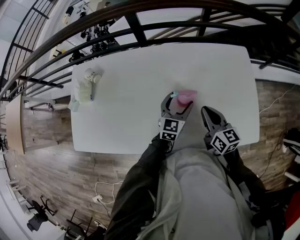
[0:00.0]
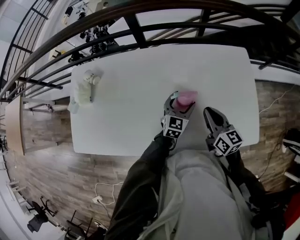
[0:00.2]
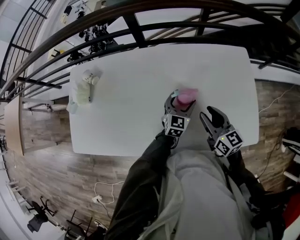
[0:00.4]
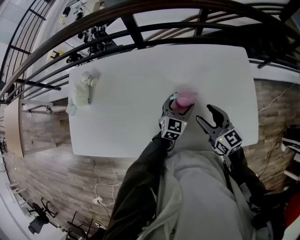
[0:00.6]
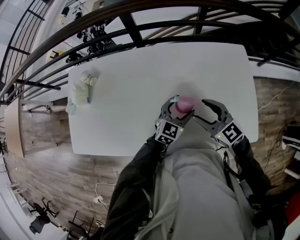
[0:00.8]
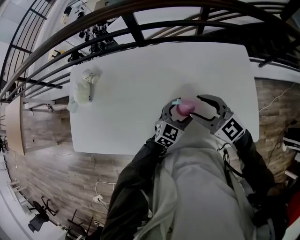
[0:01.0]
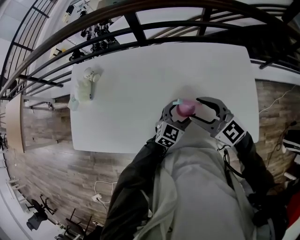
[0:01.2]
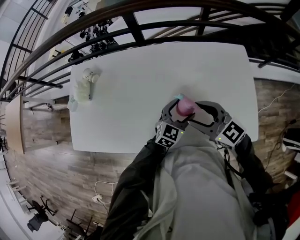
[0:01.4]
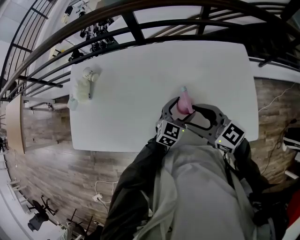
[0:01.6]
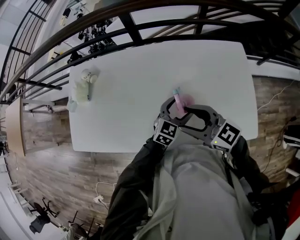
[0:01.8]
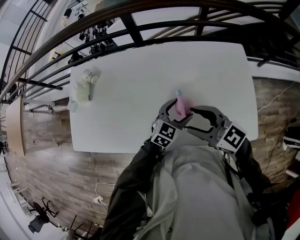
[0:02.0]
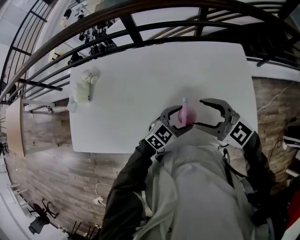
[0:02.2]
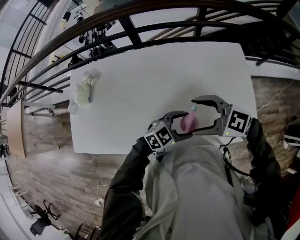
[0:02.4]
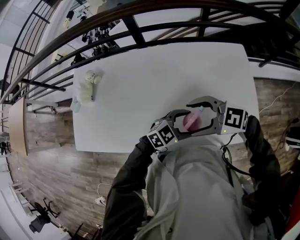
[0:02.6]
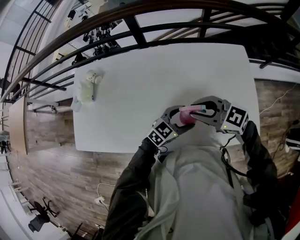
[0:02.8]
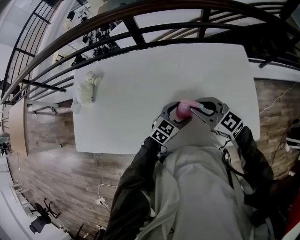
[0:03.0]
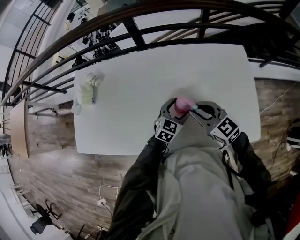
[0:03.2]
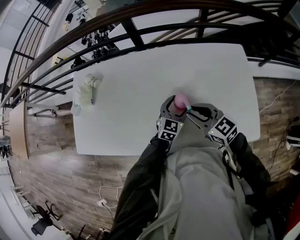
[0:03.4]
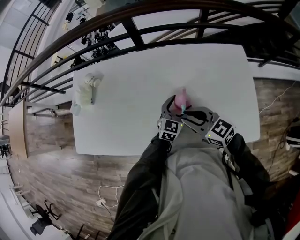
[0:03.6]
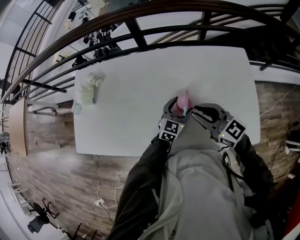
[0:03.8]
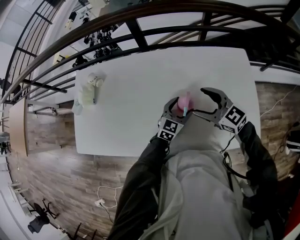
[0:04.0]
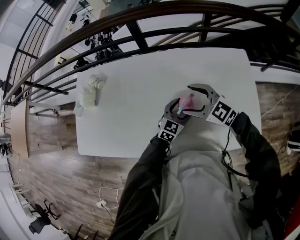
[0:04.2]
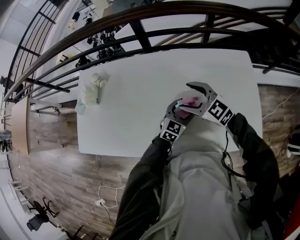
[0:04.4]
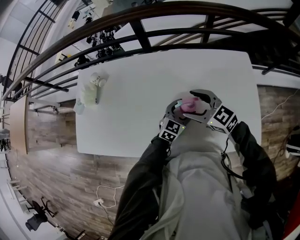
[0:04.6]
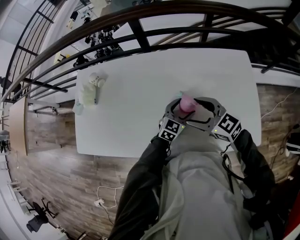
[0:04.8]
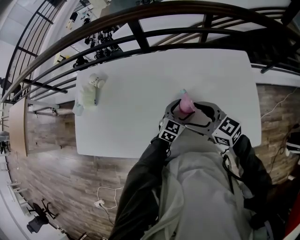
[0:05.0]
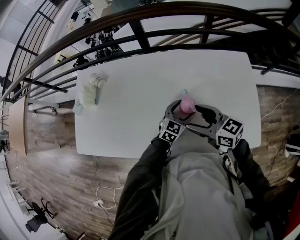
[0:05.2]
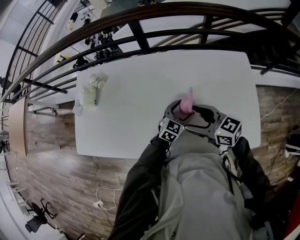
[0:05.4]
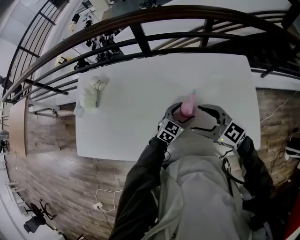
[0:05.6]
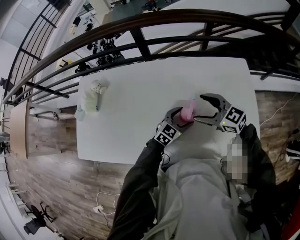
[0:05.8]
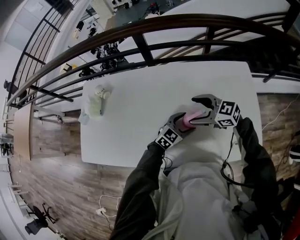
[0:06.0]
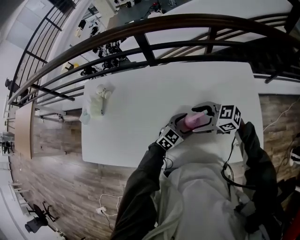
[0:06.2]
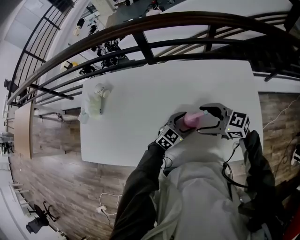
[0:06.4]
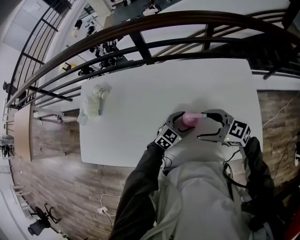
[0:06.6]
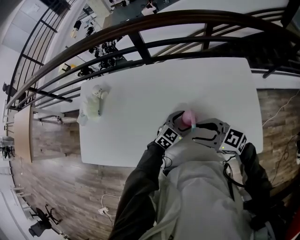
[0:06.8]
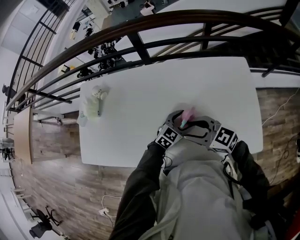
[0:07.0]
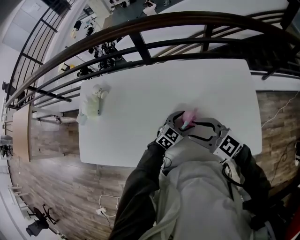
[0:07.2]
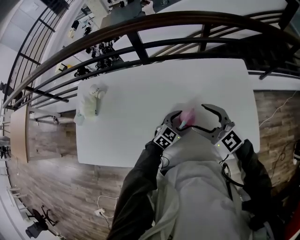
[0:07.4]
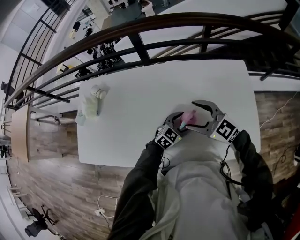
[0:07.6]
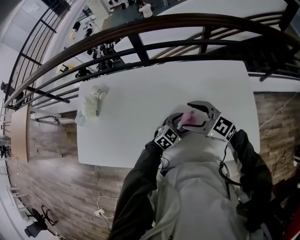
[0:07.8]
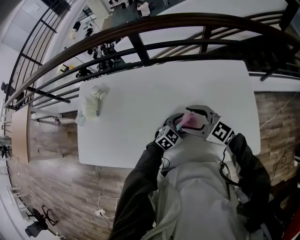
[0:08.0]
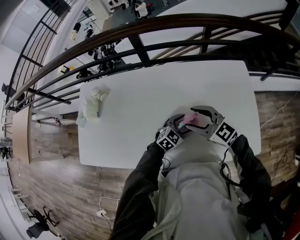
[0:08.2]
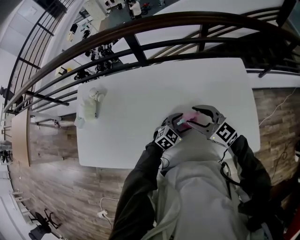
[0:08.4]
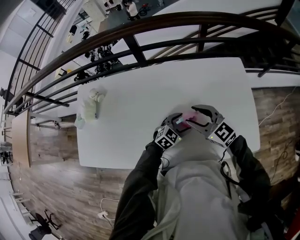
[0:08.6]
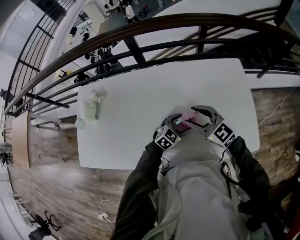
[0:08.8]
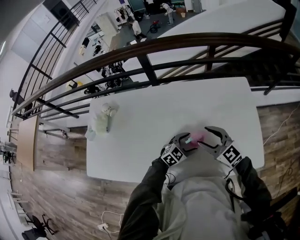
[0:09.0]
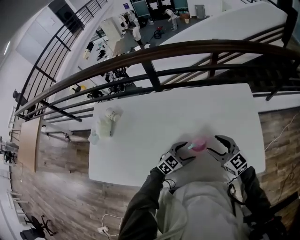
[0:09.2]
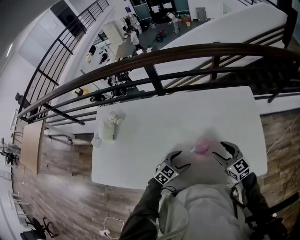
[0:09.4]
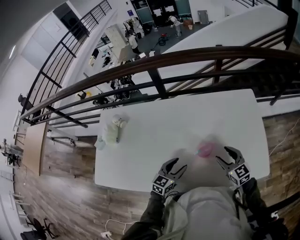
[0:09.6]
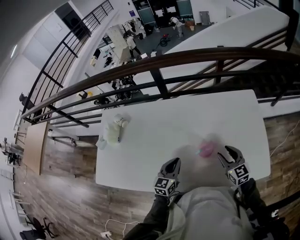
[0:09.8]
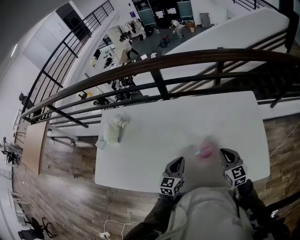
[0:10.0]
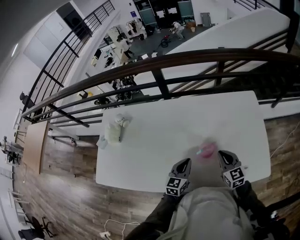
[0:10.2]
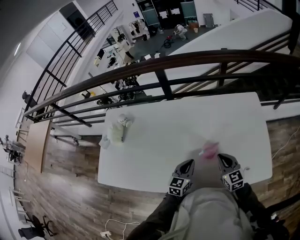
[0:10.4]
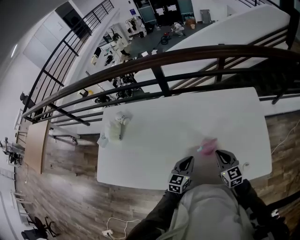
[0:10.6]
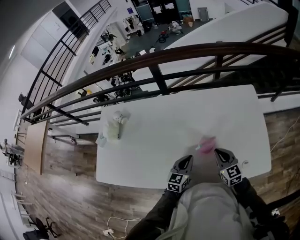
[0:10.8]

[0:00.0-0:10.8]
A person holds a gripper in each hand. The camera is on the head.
0:00.0 to 0:01.6: The left gripper changes place by approximately 5 cm; the right gripper is displaced to the left and upward by some 10 cm, changes its angle by about 40 degrees, and opens.
0:01.6 to 0:03.0: The right gripper shifts by about 5 cm, and closes its fingers.
0:03.0 to 0:04.6: The left gripper is displaced forward by about 5 cm, while the right gripper opens its fingers.
0:04.6 to 0:06.2: The right gripper rotates about 20 degrees.
0:06.2 to 0:07.8: The right gripper turns by about 20 degrees, and closes, then opens again.
0:07.8 to 0:09.2: The right gripper travels to the right by about 10 cm, and changes its angle by approximately 20 degrees.
0:09.2 to 0:10.8: The left gripper turns by some 40 degrees, and closes its fingers. The right gripper changes place by about 5 cm, and closes up.

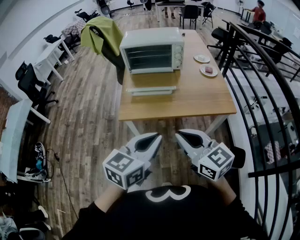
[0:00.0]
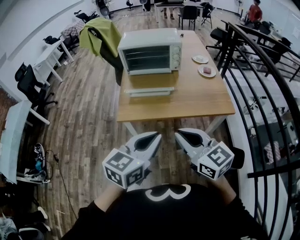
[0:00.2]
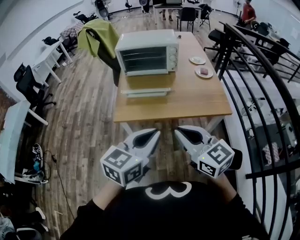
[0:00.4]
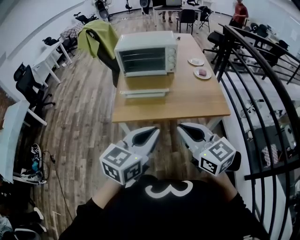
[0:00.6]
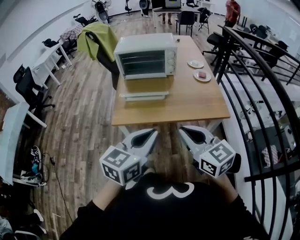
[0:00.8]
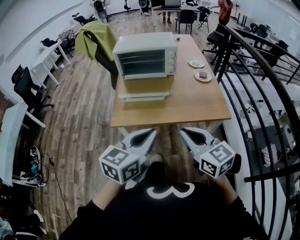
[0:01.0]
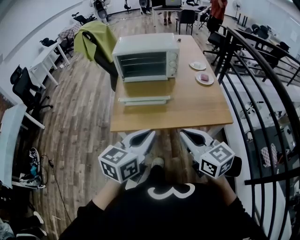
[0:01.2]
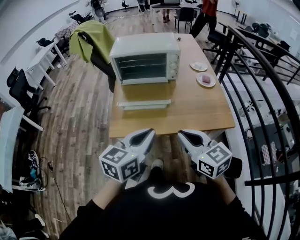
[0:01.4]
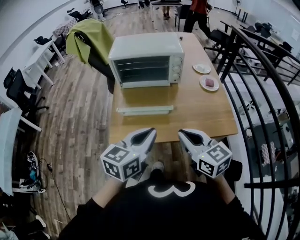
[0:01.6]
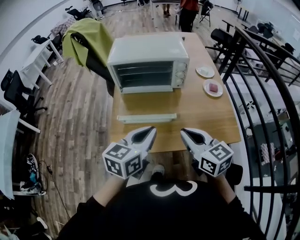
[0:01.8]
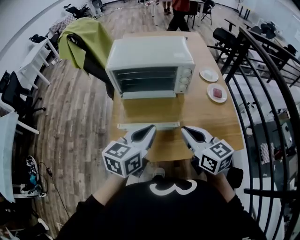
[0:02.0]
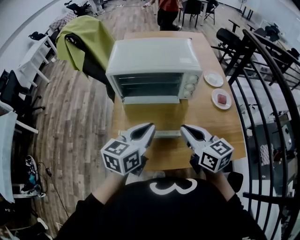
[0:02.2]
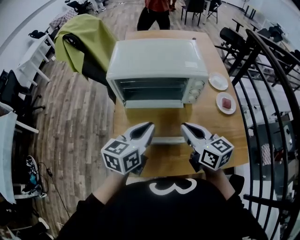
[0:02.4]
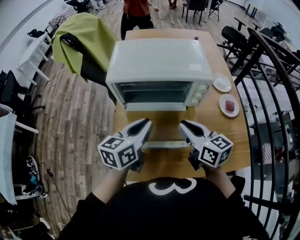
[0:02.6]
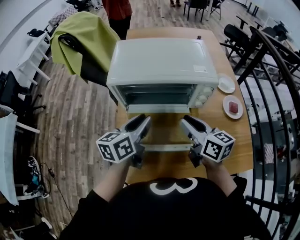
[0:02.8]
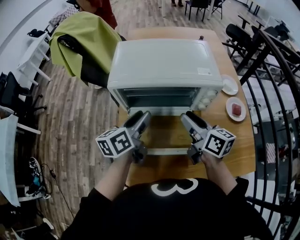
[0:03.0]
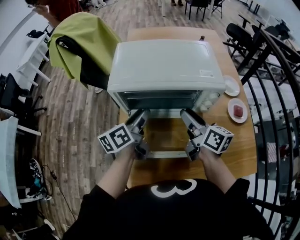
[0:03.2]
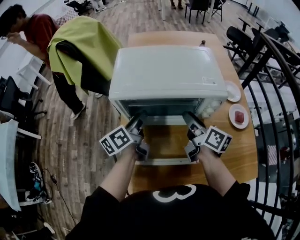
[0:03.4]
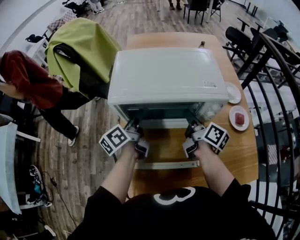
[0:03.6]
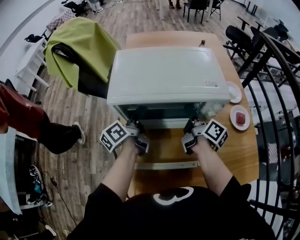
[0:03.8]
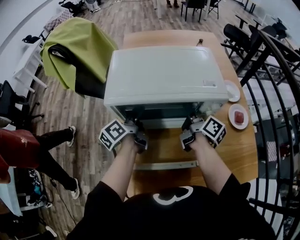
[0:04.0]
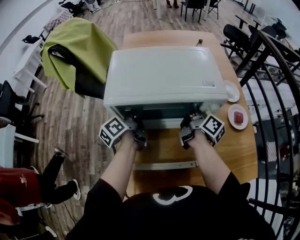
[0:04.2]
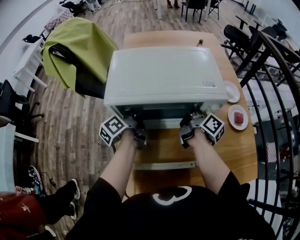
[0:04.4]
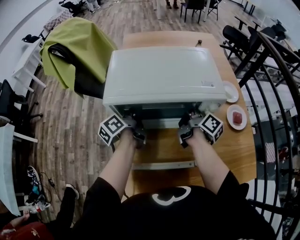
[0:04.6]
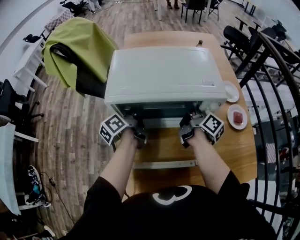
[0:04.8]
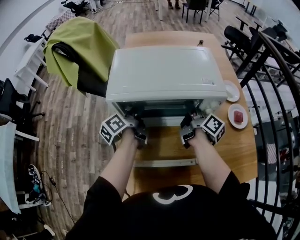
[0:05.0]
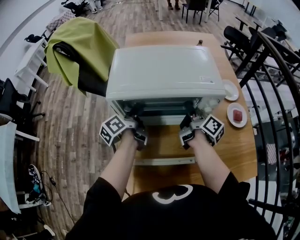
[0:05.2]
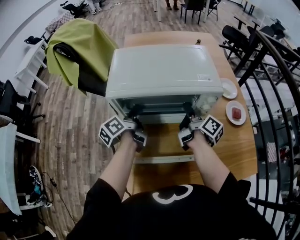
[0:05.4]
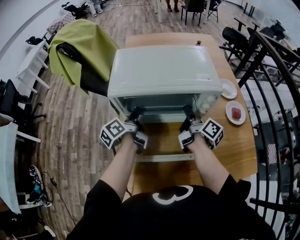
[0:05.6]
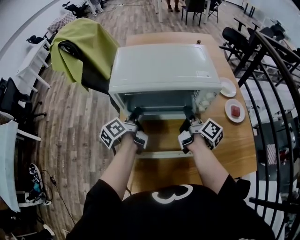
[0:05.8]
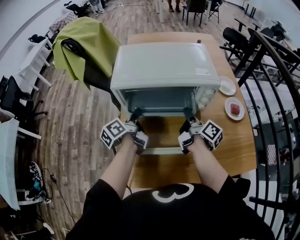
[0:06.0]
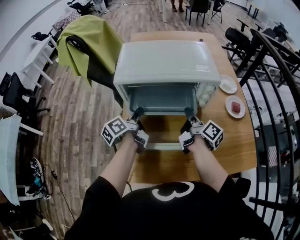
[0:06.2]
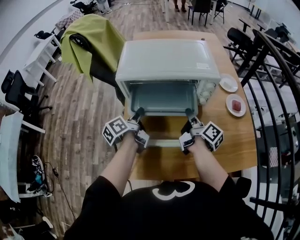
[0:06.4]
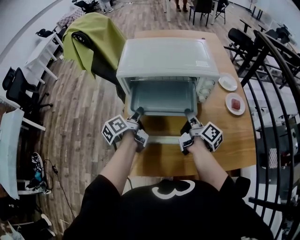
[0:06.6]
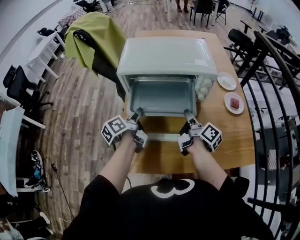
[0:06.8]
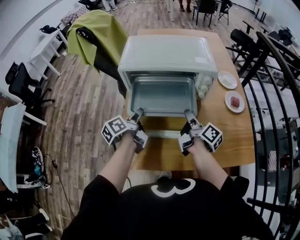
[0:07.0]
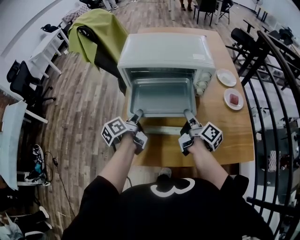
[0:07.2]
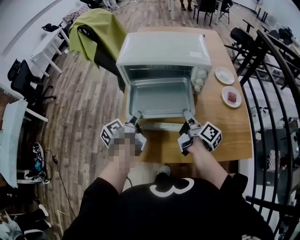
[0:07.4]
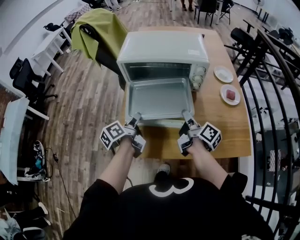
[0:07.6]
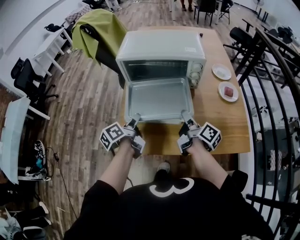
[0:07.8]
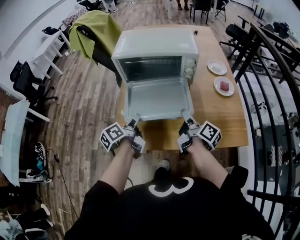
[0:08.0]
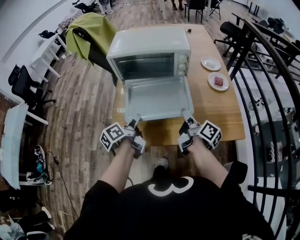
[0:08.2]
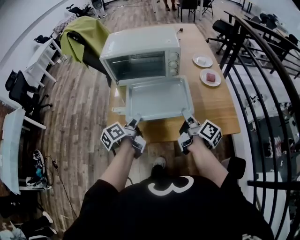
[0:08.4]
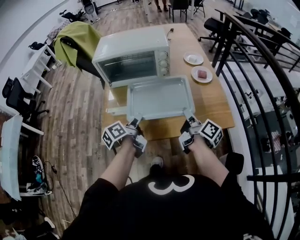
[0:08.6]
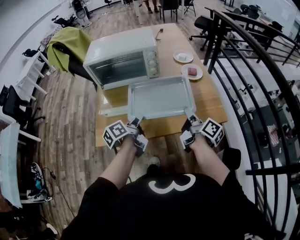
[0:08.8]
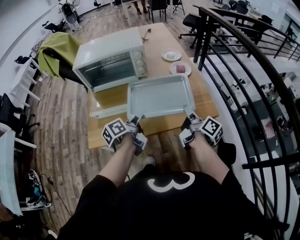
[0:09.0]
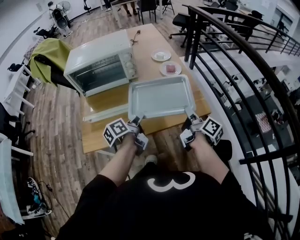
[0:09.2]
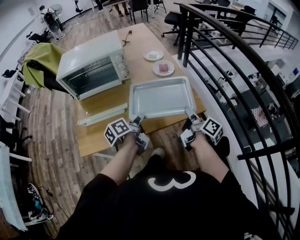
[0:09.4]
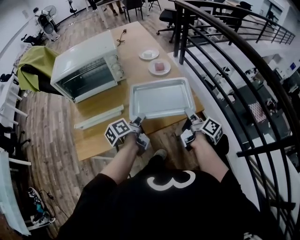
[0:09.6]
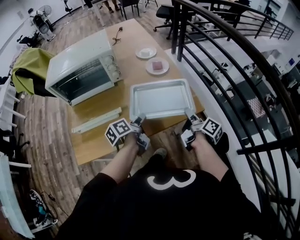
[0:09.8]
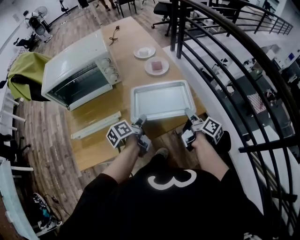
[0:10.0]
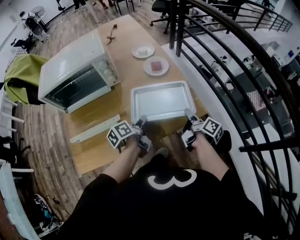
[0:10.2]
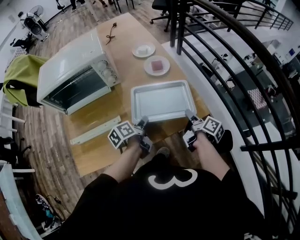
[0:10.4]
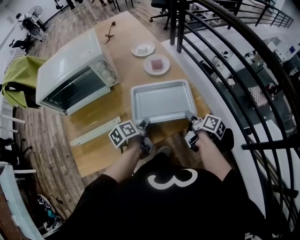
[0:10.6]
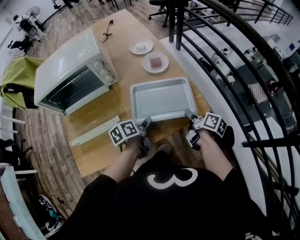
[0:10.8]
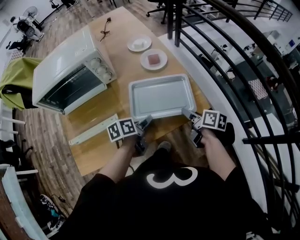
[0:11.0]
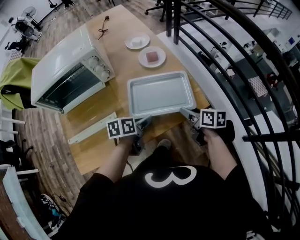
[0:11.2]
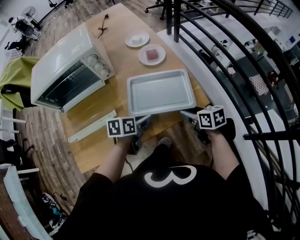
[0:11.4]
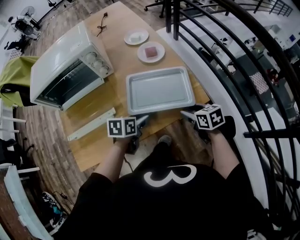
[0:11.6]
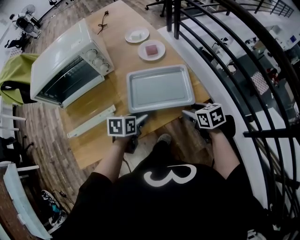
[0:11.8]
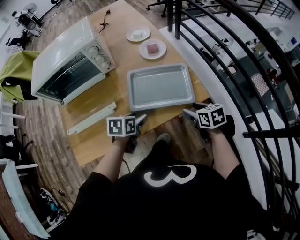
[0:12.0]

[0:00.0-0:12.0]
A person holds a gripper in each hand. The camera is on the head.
0:00.0 to 0:01.6: The grippers both shift forward by roughly 20 cm.
0:01.6 to 0:03.0: The grippers both shift forward by about 40 cm. The right gripper swivels approximately 30 degrees, and opens. Meanwhile the left gripper rotates about 30 degrees, and opens up.
0:03.0 to 0:04.4: Both grippers move forward and downward, roughly 15 cm. The right gripper turns by some 40 degrees, while the left gripper turns by approximately 30 degrees.
0:04.4 to 0:06.0: Both grippers move backward, about 10 cm.
0:06.0 to 0:07.6: Both grippers travel together backward, roughly 15 cm.
0:07.6 to 0:09.0: Both grippers move to the right and backward, about 30 cm.
0:09.0 to 0:10.4: The right gripper moves downward, to the right and forward, about 15 cm. The left gripper moves forward, to the right and downward, some 20 cm.
0:10.4 to 0:12.0: The left gripper ends up approximately 5 cm from where it was, rotates around the line of its fingers by about 40 degrees, clockwise from behind, and opens its fingers; the right gripper moves about 5 cm, twists roughly 60 degrees counterclockwise, seen from behind, and opens its fingers.

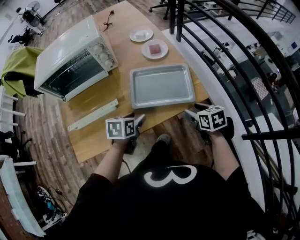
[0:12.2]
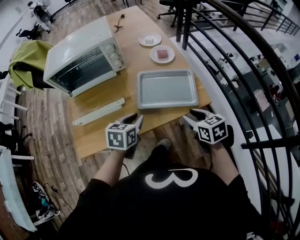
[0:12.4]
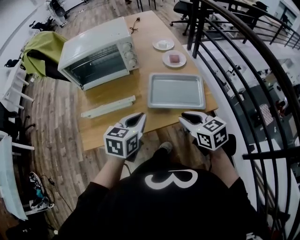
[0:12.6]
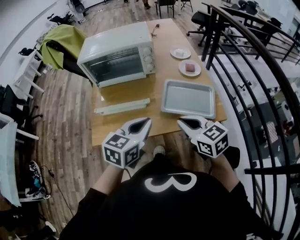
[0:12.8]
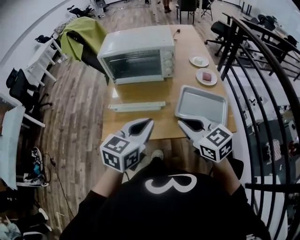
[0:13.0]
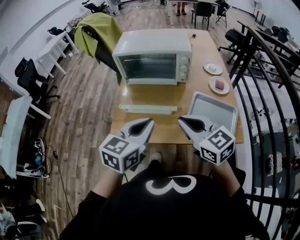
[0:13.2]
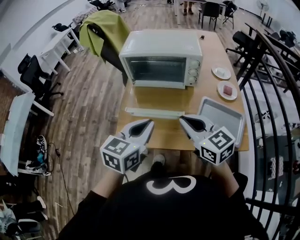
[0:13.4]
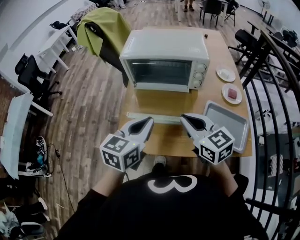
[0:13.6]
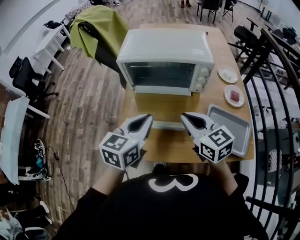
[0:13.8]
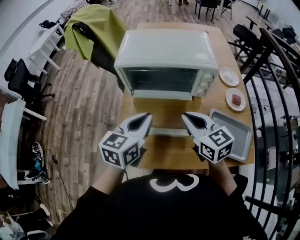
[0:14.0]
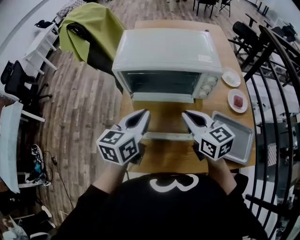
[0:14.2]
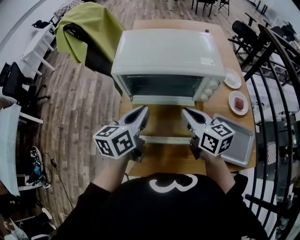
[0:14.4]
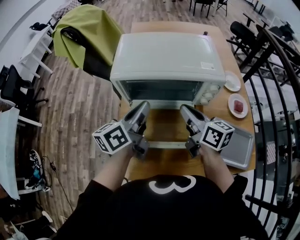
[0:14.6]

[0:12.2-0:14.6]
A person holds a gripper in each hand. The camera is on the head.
0:12.2 to 0:13.4: The right gripper ends up approximately 40 cm from where it was, angles its fingers upward, by approximately 30 degrees, and closes its fingers; the left gripper is displaced upward by some 25 cm, changes its angle by some 40 degrees, and closes up.
0:13.4 to 0:14.6: Both grippers move forward, approximately 30 cm. The left gripper changes its angle by approximately 40 degrees. The right gripper rotates about 40 degrees.
